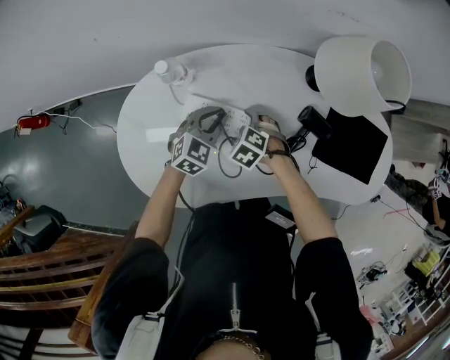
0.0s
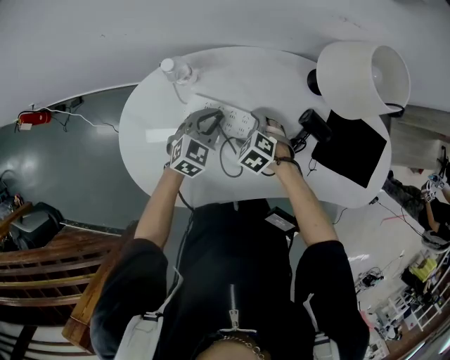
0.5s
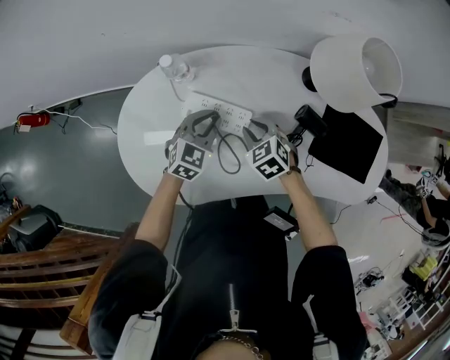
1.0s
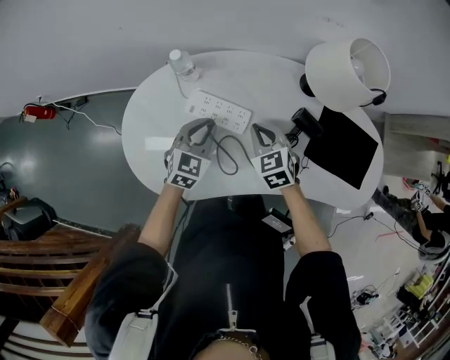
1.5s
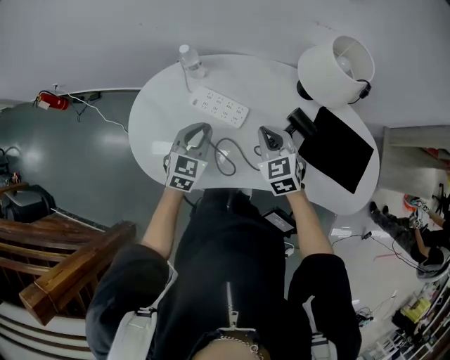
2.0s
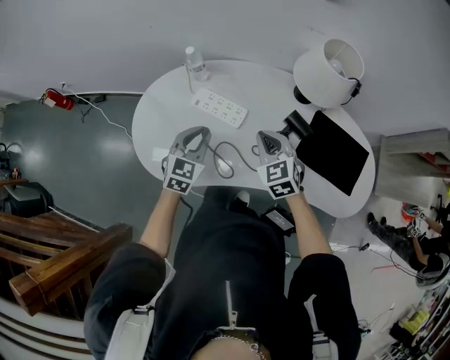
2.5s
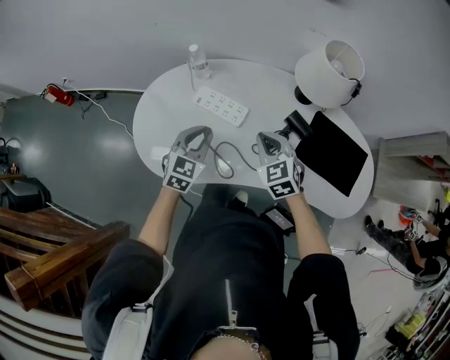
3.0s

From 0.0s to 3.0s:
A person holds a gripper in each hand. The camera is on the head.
From 0.0s to 1.5s: The left gripper is displaced backward and upward by some 10 cm. Meanwhile the right gripper is displaced upward by approximately 15 cm, turns by approximately 40 degrees, and closes its fingers.
From 1.5s to 3.0s: Both grippers move backward and upward, some 10 cm.

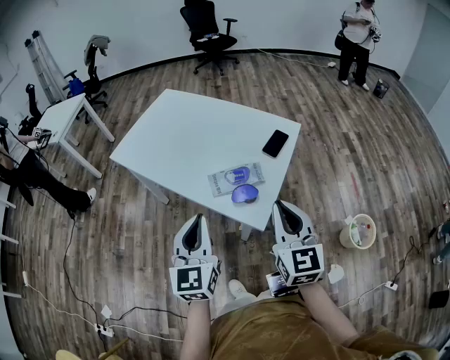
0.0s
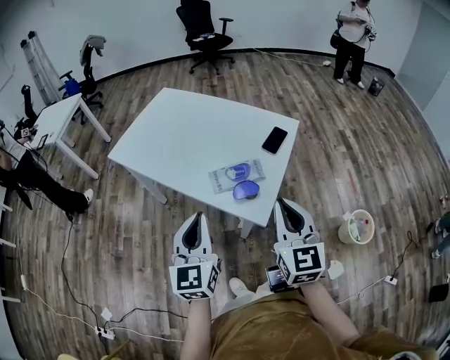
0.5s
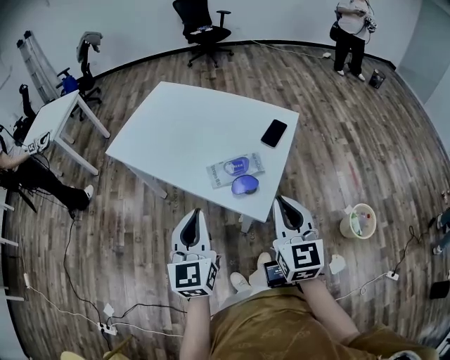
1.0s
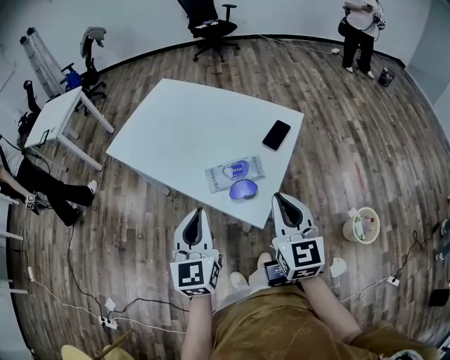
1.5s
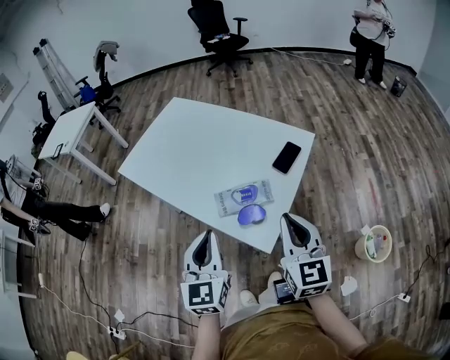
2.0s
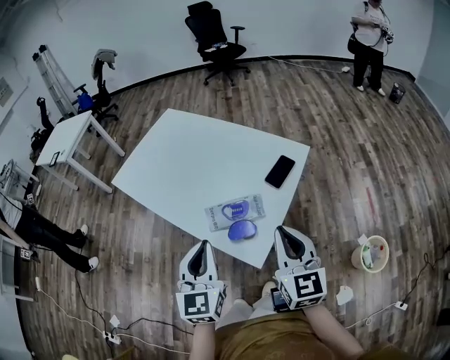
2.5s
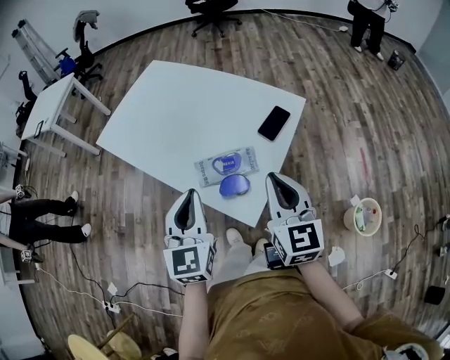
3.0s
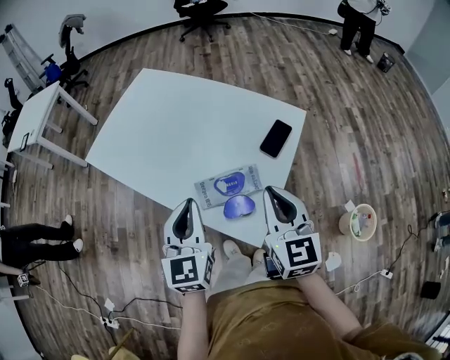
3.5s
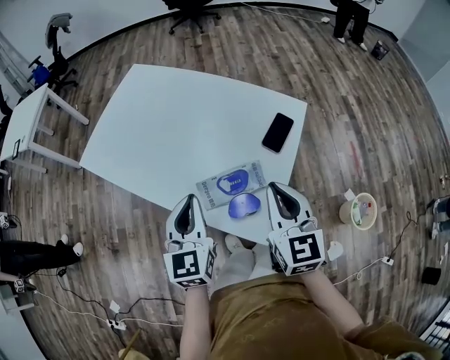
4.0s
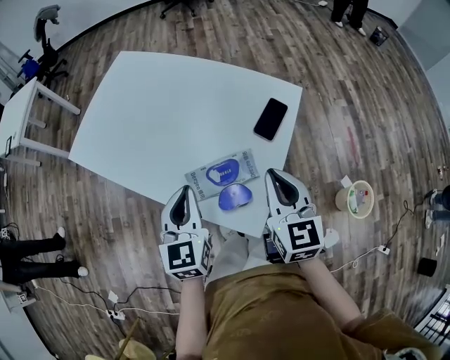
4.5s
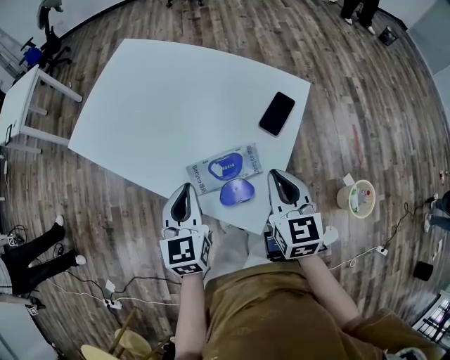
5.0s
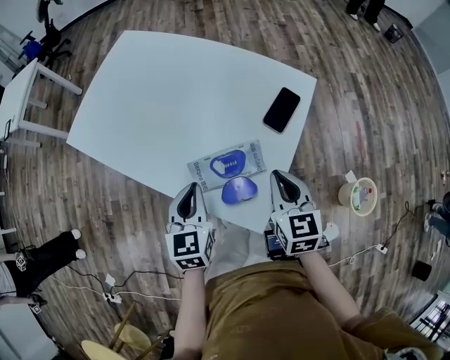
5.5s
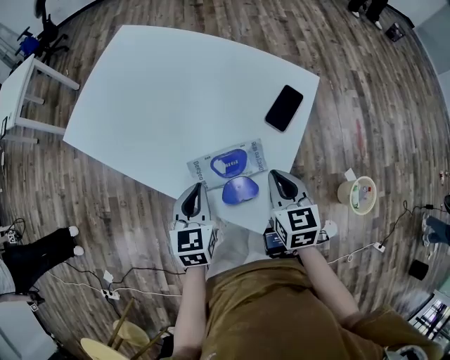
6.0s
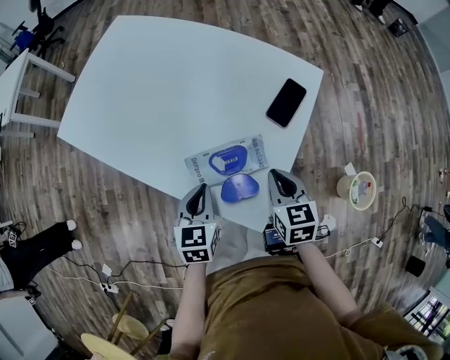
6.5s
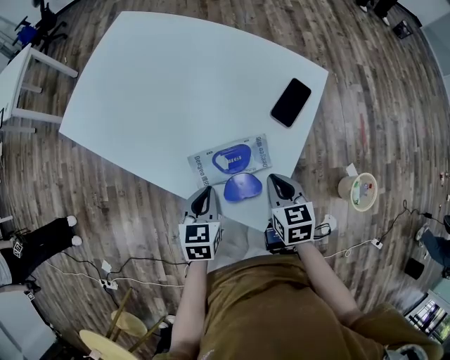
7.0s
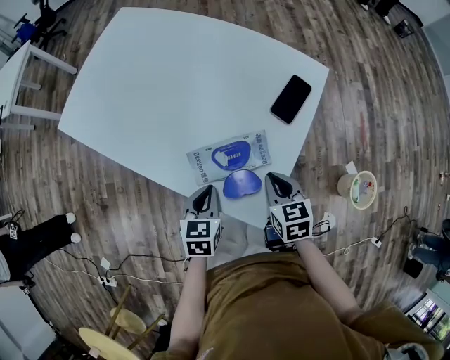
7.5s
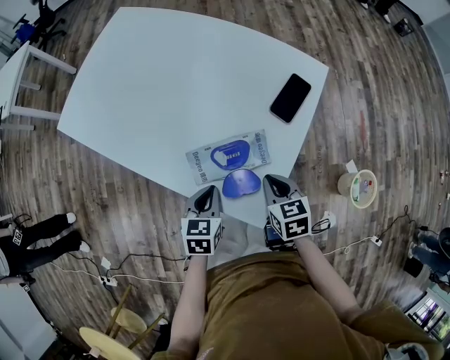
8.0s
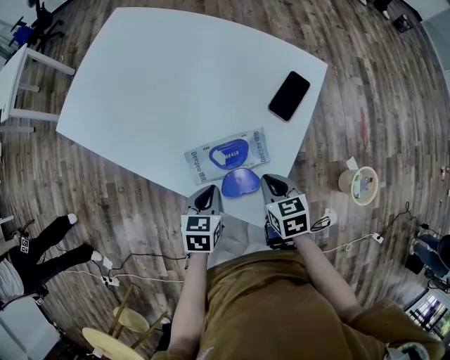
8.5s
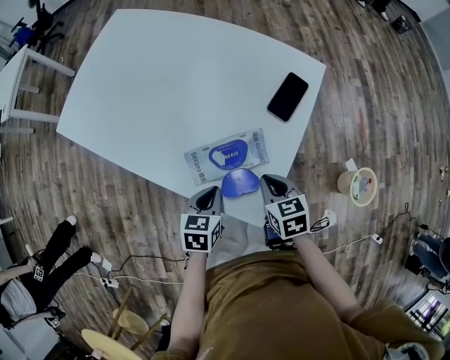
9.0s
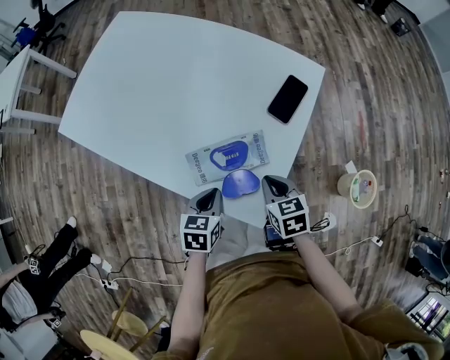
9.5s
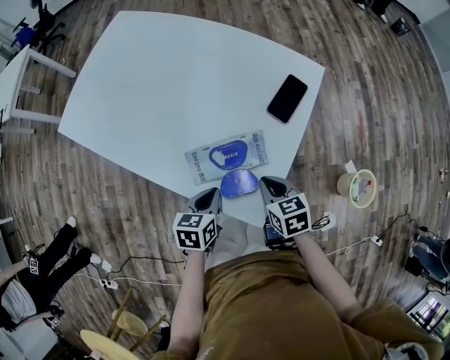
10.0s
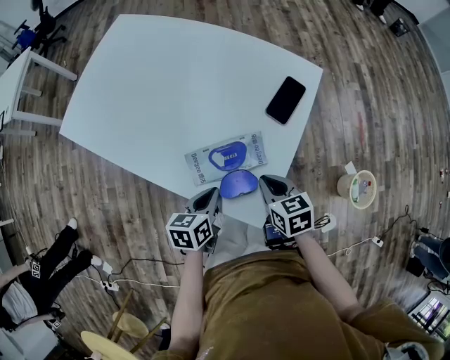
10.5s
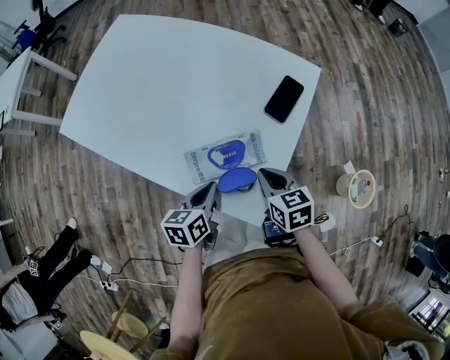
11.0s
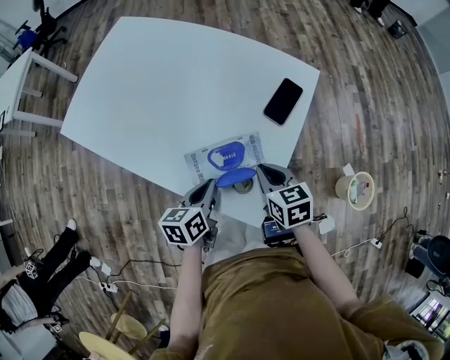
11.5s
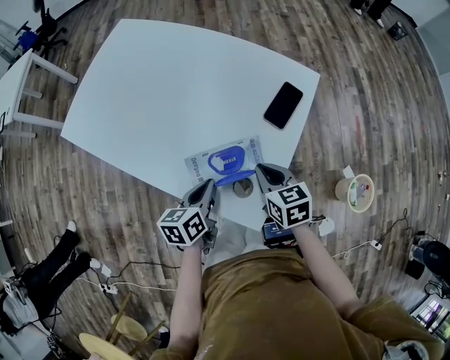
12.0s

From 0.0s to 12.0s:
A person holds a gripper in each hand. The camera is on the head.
From 0.0s to 2.0s: The grippers both shift forward by approximately 5 cm.
From 2.0s to 4.0s: The left gripper is displaced forward and downward by about 15 cm. Meanwhile the right gripper heads forward, covering roughly 10 cm.
From 4.0s to 6.0s: Both grippers travel together downward, some 15 cm.
From 6.0s to 8.0s: The two grippers go about 10 cm downward.
From 8.0s to 10.0s: The grippers make only small movements.
From 10.0s to 12.0s: The right gripper shifts about 5 cm forward. The left gripper changes place by some 5 cm.

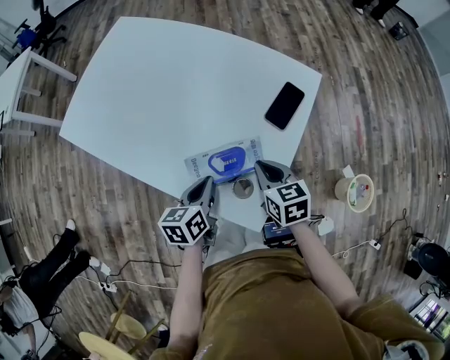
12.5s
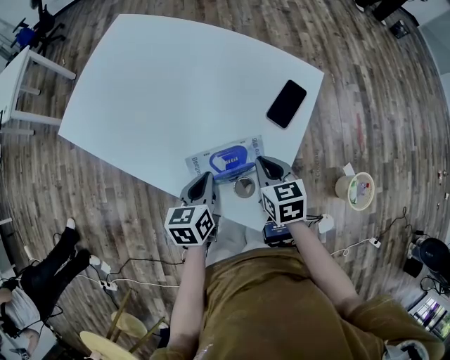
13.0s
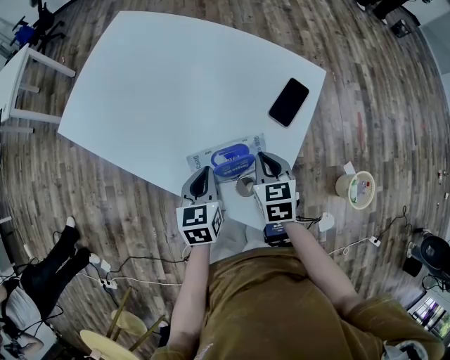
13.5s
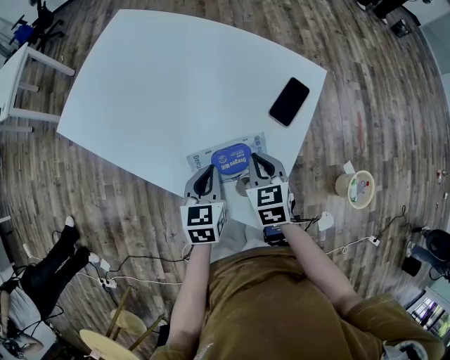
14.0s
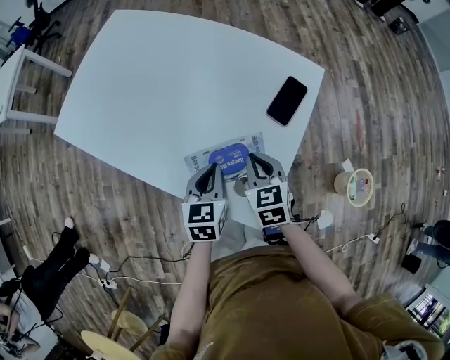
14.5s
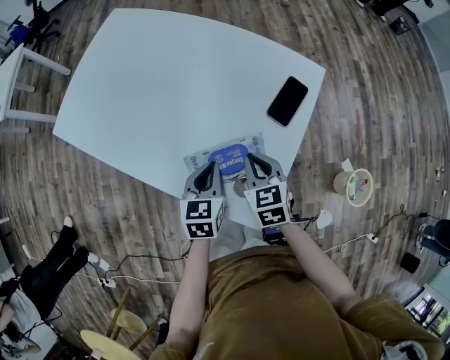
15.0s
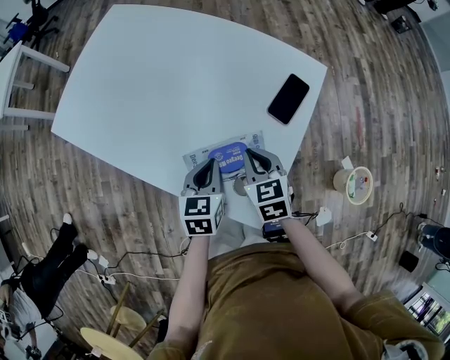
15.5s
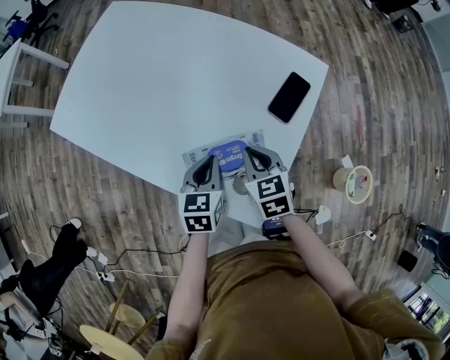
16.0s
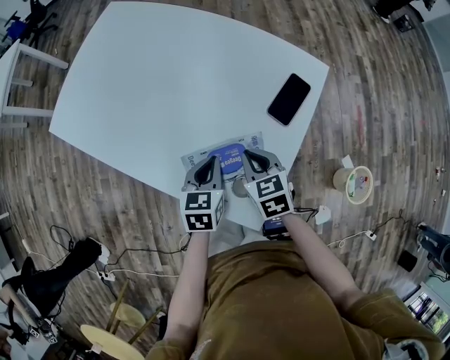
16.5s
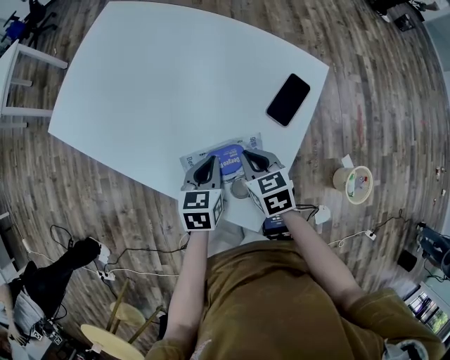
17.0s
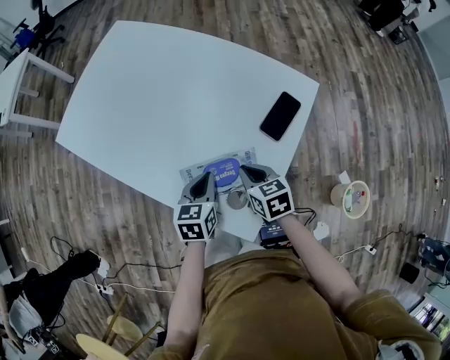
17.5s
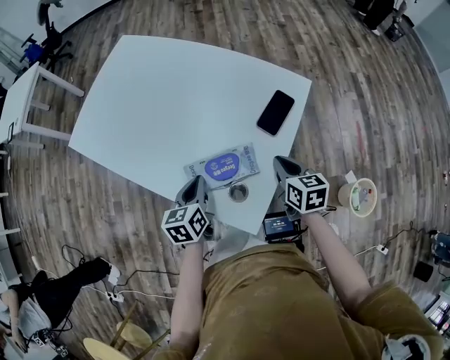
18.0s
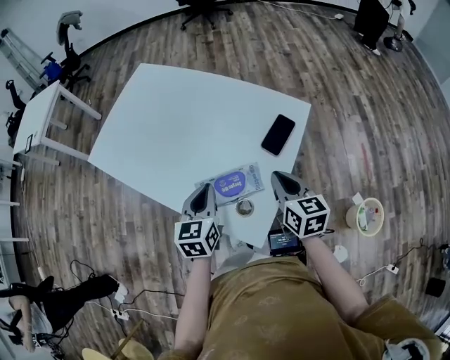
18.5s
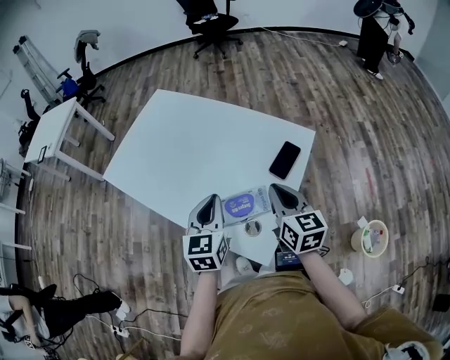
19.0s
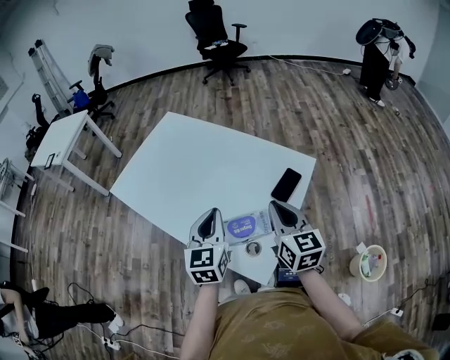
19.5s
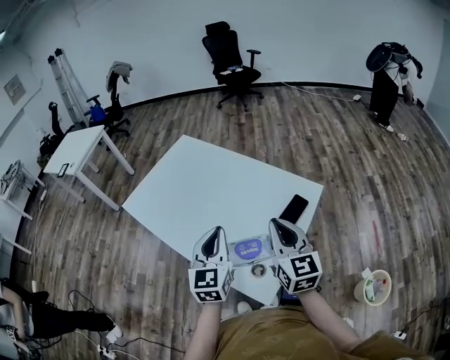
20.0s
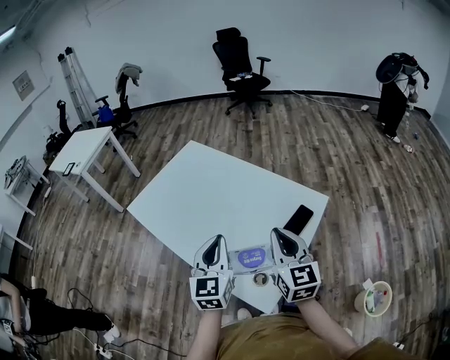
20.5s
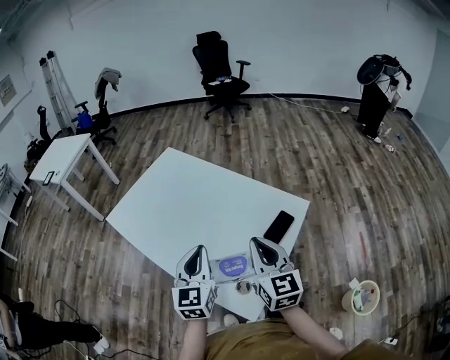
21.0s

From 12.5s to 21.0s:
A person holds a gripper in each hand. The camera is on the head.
From 12.5s to 14.5s: The left gripper rotates some 20 degrees.
From 14.5s to 16.5s: There are only small adjustments of the grippers.
From 16.5s to 19.0s: Both grippers move upward, approximately 20 cm. The left gripper rotates roughly 30 degrees; the right gripper tips its fingers upward by roughly 30 degrees.
From 19.0s to 21.0s: The grippers both shift upward by roughly 10 cm.

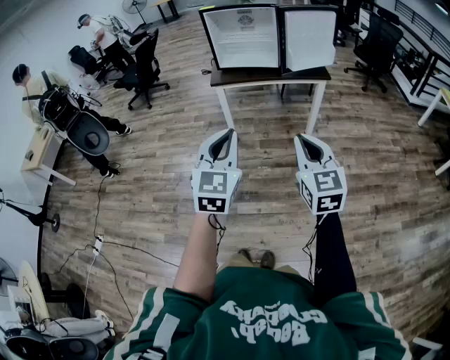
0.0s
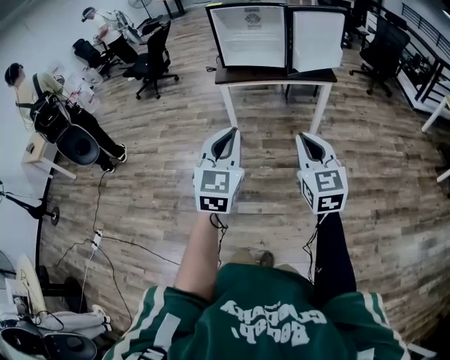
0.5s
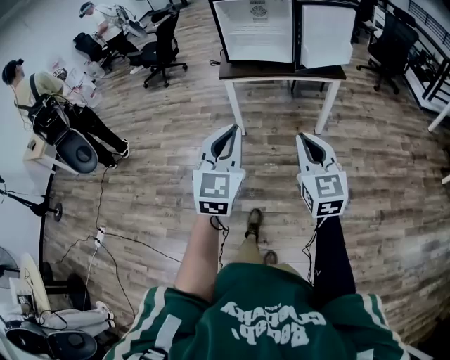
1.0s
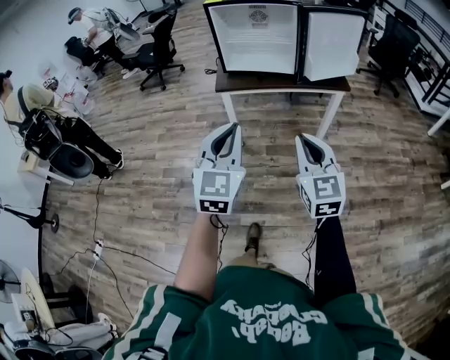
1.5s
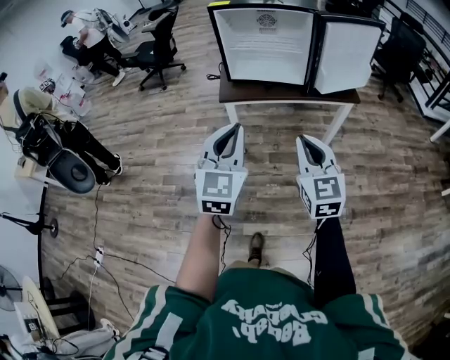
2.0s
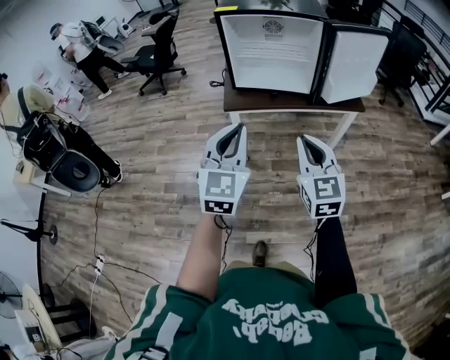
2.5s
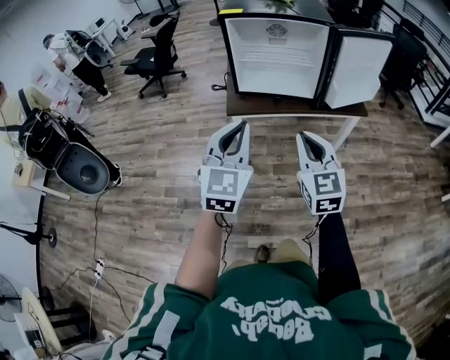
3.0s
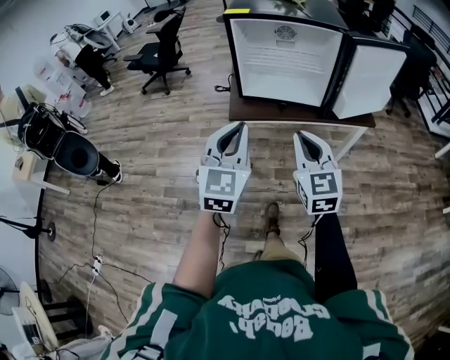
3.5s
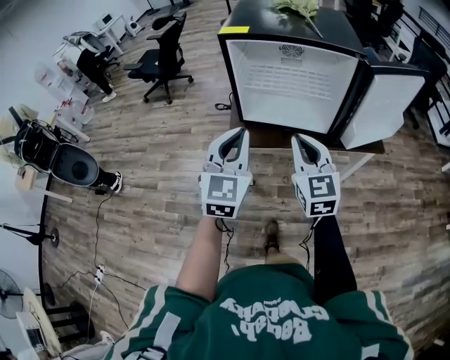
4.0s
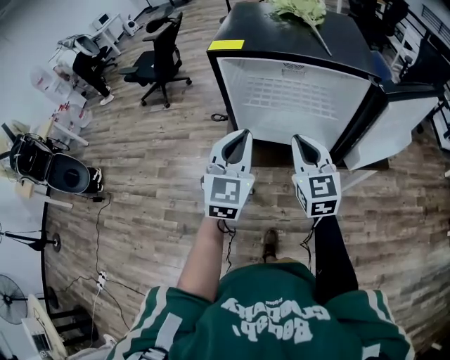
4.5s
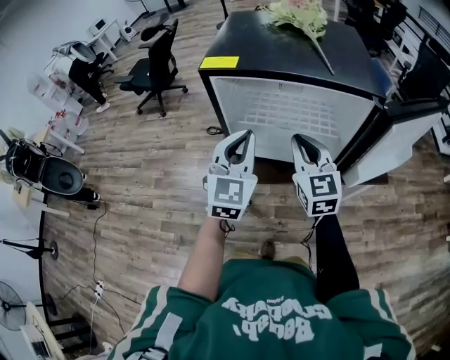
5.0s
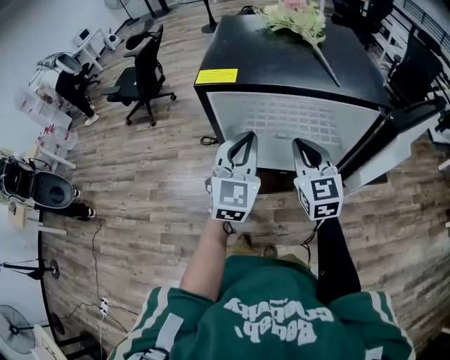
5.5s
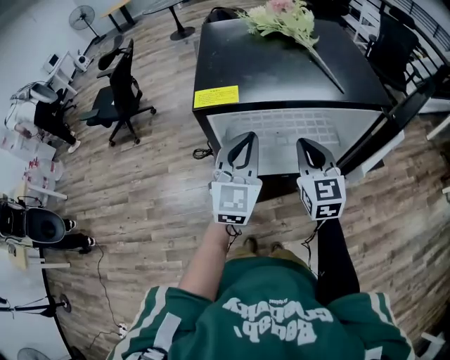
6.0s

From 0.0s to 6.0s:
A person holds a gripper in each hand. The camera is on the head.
From 0.0s to 2.0s: Both grippers travel together forward, approximately 25 cm.
From 2.0s to 4.0s: Both grippers travel together forward, some 25 cm.
From 4.0s to 6.0s: Both grippers move forward, roughly 25 cm.
